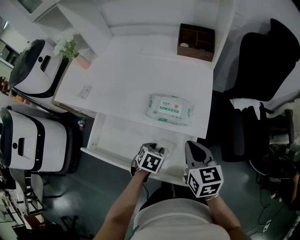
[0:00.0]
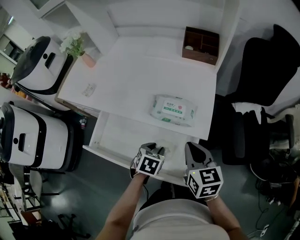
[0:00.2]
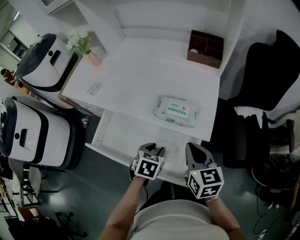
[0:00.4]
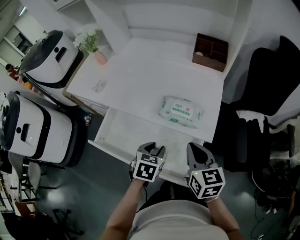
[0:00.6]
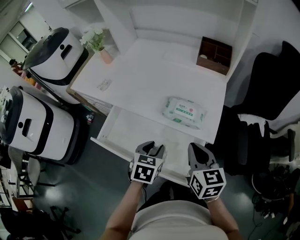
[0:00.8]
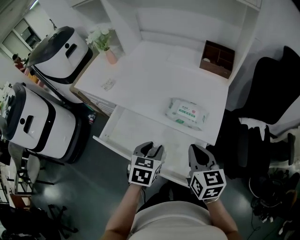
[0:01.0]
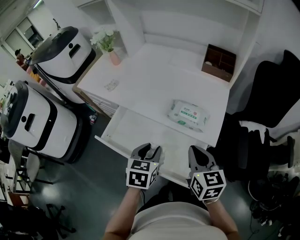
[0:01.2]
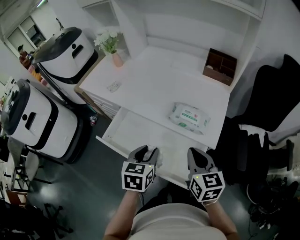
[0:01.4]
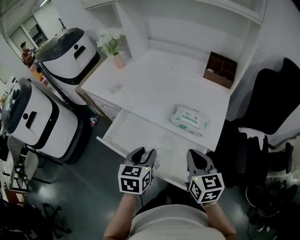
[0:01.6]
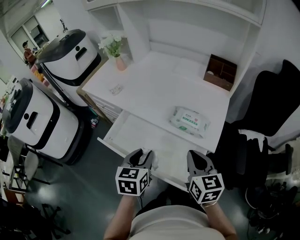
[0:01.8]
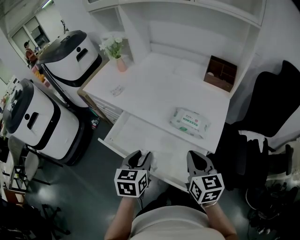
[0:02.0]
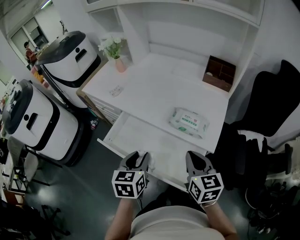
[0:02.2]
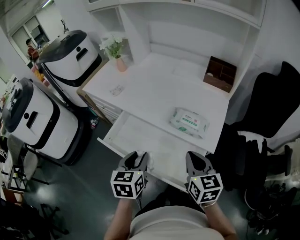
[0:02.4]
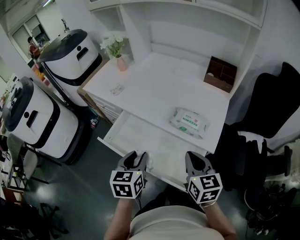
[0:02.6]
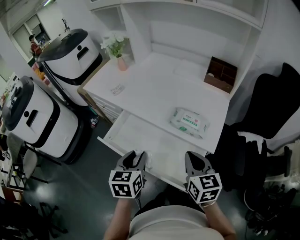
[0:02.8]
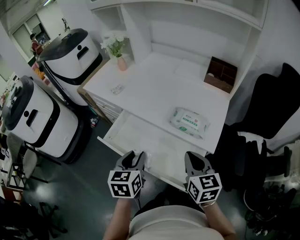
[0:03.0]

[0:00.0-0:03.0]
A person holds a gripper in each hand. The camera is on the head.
0:00.0 to 0:01.6: The right gripper moves to the left, some 5 cm. Meanwhile the left gripper travels upward and to the left by roughly 20 cm, and tips its fingers upward by approximately 30 degrees.
0:01.6 to 0:03.0: The grippers move only a little.

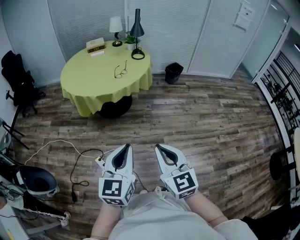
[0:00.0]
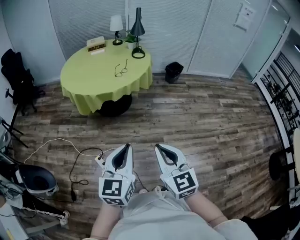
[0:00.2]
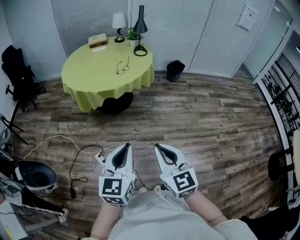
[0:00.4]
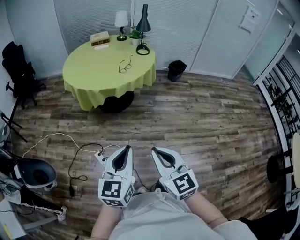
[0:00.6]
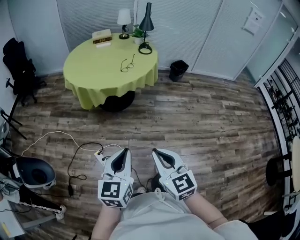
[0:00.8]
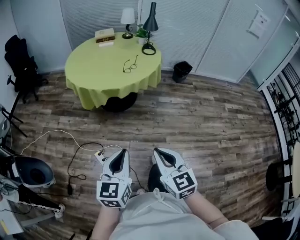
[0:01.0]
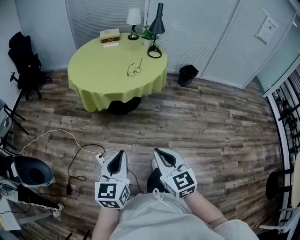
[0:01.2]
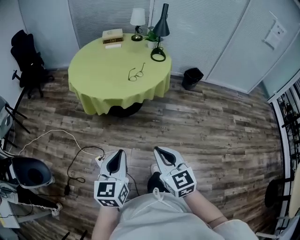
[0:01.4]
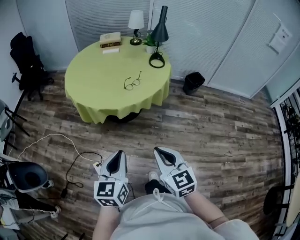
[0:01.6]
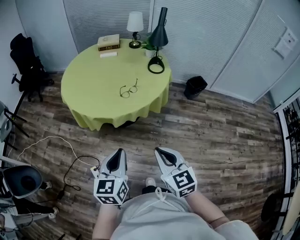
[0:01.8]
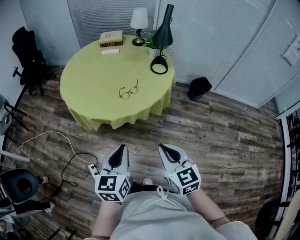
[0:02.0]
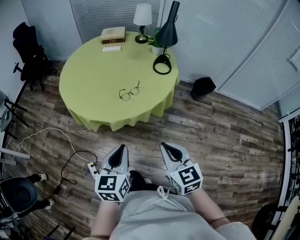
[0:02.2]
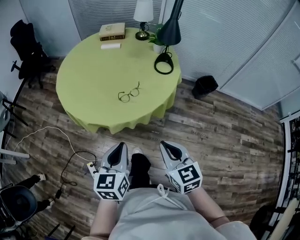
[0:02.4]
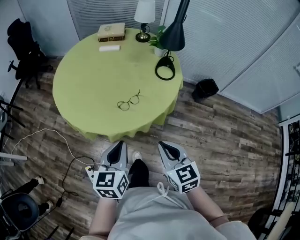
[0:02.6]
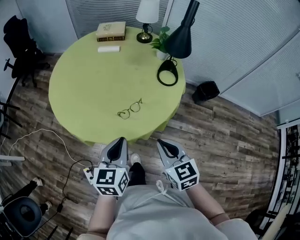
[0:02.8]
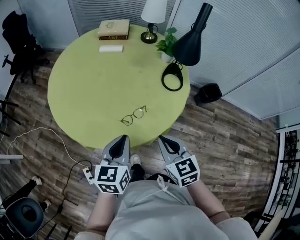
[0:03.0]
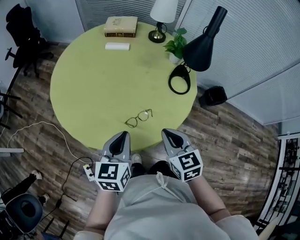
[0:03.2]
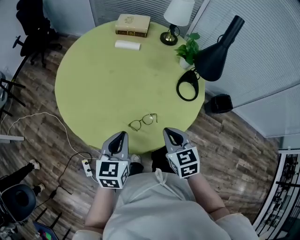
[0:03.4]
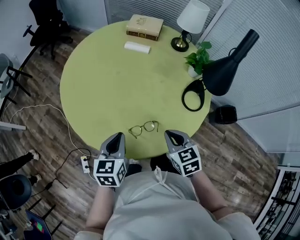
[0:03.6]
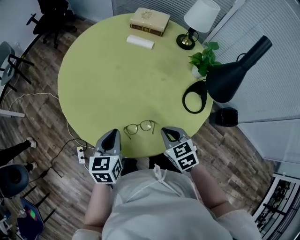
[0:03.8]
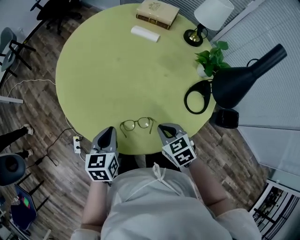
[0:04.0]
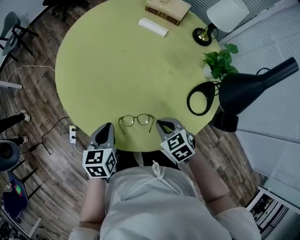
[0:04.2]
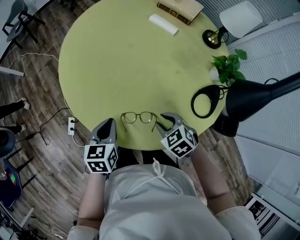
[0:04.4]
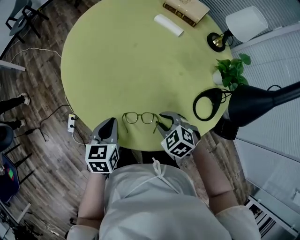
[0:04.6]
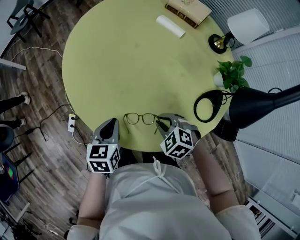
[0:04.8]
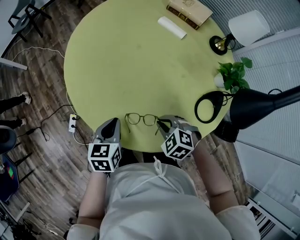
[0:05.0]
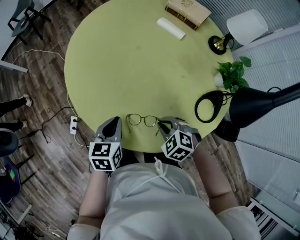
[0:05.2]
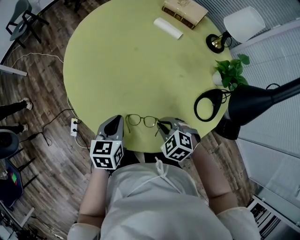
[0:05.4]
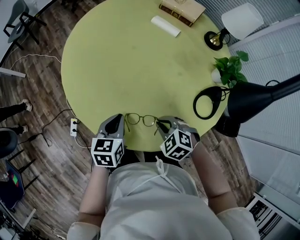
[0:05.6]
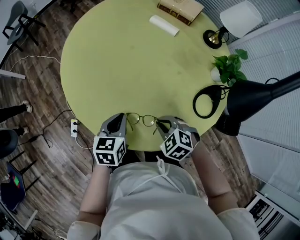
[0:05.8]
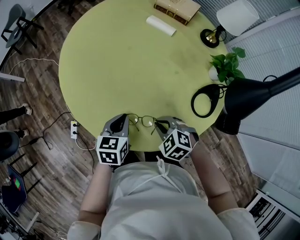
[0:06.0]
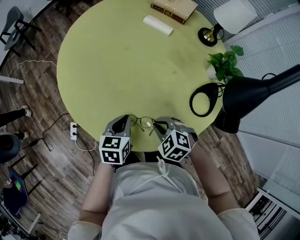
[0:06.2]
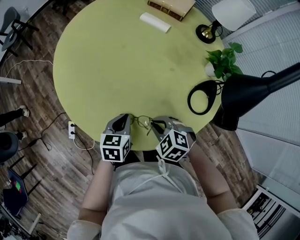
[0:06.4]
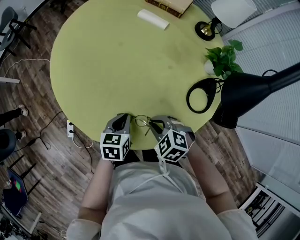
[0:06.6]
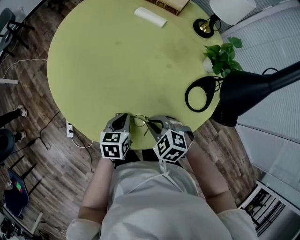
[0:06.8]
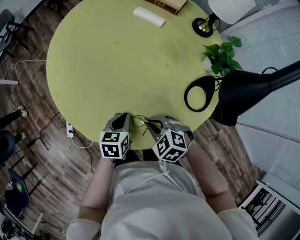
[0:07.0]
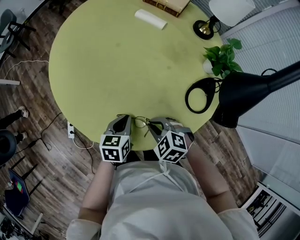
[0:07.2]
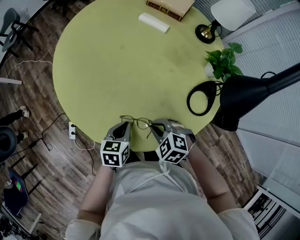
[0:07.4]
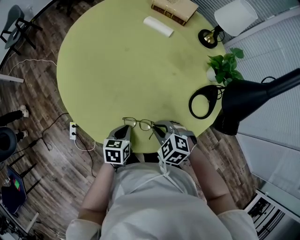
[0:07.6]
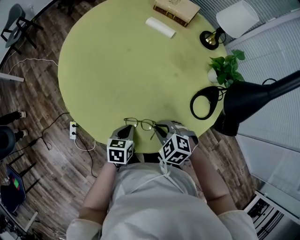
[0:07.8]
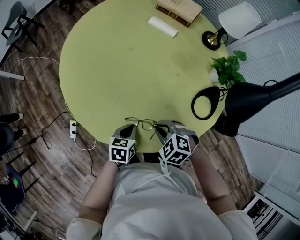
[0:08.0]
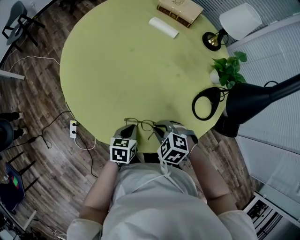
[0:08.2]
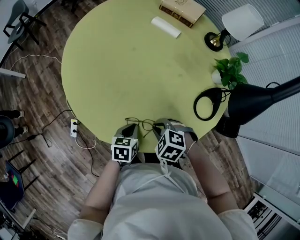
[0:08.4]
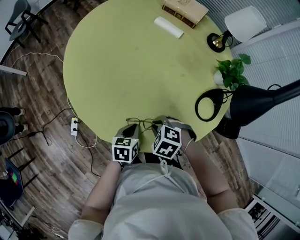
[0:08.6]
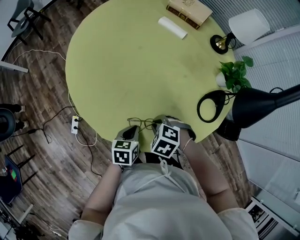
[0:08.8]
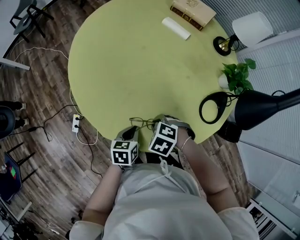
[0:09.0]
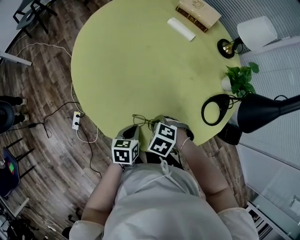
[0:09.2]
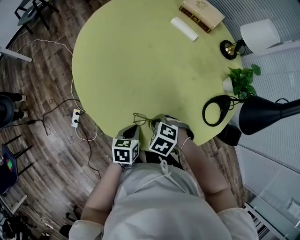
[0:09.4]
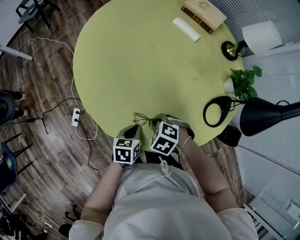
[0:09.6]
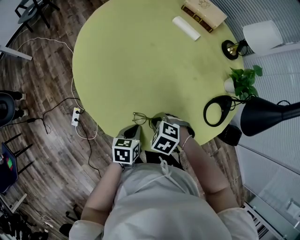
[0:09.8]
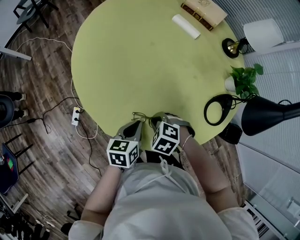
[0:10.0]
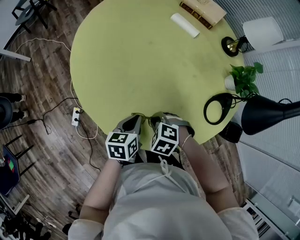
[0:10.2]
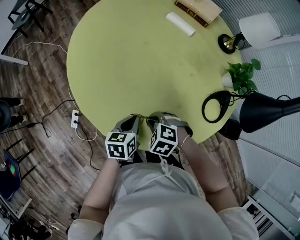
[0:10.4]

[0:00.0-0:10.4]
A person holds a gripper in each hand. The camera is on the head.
0:00.0 to 0:01.4: Both grippers move forward, about 15 cm.
0:01.4 to 0:03.0: Both grippers are carried forward, about 50 cm.
0:03.0 to 0:04.4: Both grippers travel together downward, roughly 15 cm. The left gripper turns by some 40 degrees; the right gripper rotates some 60 degrees, and opens its fingers.
0:04.4 to 0:06.0: The right gripper closes its fingers. Meanwhile the left gripper goes approximately 5 cm to the right.
0:06.0 to 0:07.4: The left gripper ends up some 5 cm from where it was.
0:07.4 to 0:09.0: The right gripper moves roughly 5 cm.

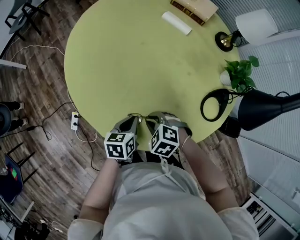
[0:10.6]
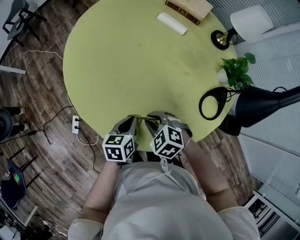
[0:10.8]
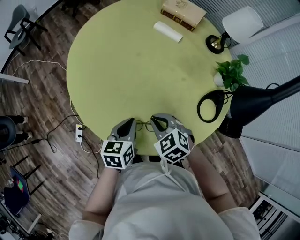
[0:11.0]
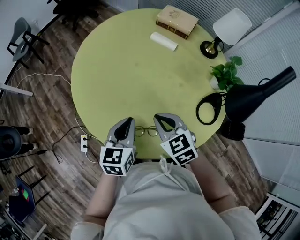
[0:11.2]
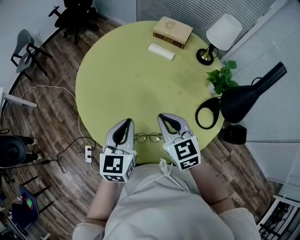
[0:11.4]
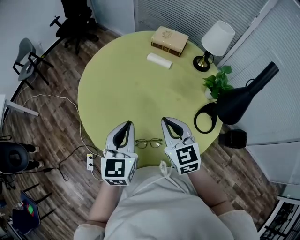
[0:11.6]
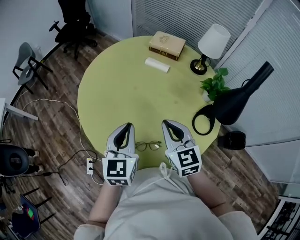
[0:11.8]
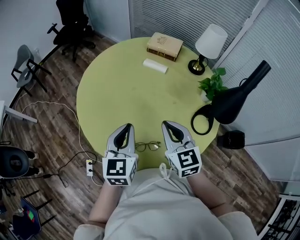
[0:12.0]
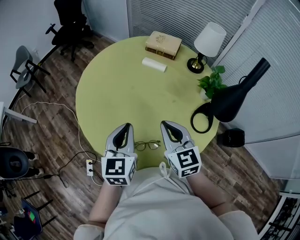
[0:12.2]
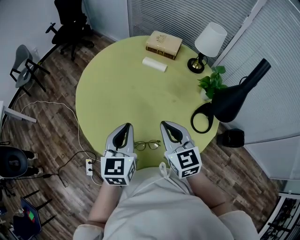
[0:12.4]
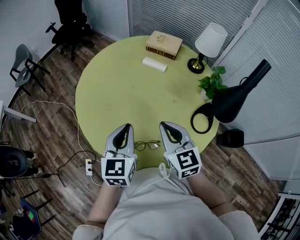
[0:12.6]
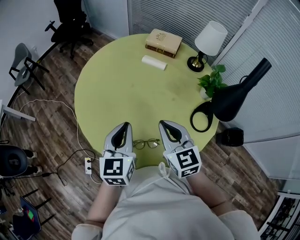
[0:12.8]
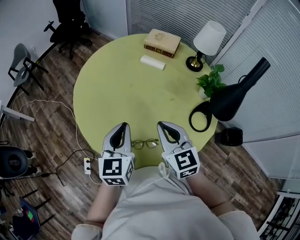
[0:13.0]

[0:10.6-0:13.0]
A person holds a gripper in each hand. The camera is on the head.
0:10.6 to 0:11.8: Both grippers move upward, some 25 cm. The left gripper turns by some 40 degrees. The right gripper points its fingers about 50 degrees further upward.
0:11.8 to 0:13.0: The grippers make only small movements.

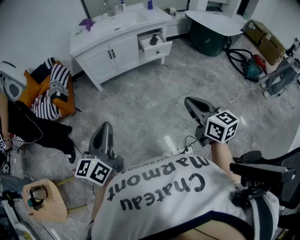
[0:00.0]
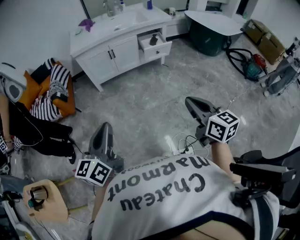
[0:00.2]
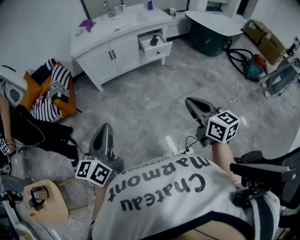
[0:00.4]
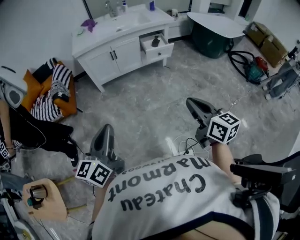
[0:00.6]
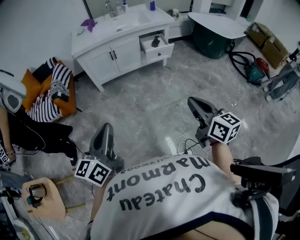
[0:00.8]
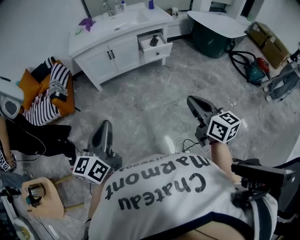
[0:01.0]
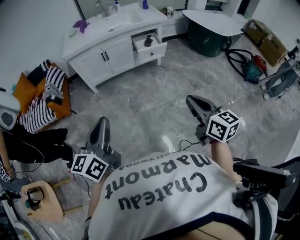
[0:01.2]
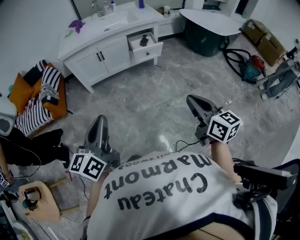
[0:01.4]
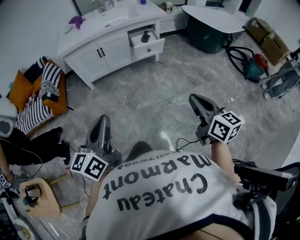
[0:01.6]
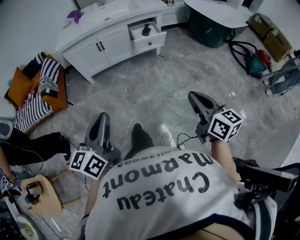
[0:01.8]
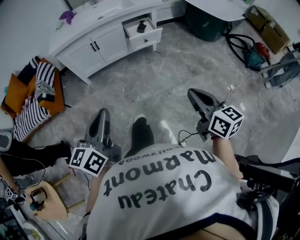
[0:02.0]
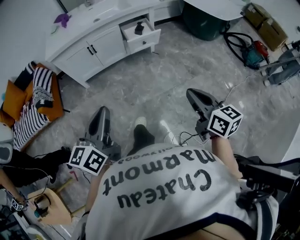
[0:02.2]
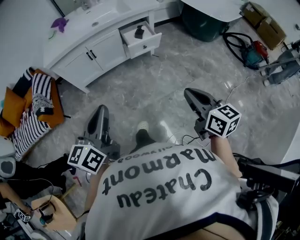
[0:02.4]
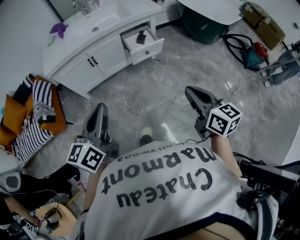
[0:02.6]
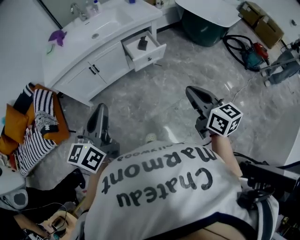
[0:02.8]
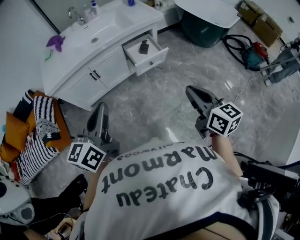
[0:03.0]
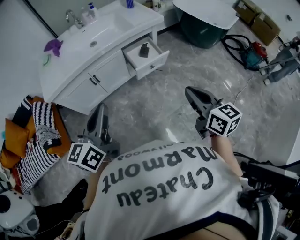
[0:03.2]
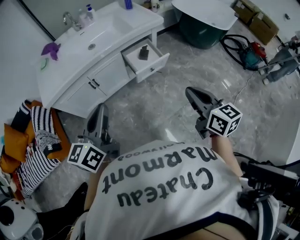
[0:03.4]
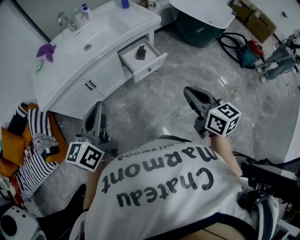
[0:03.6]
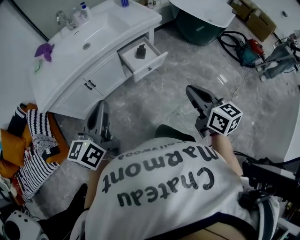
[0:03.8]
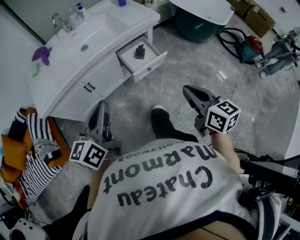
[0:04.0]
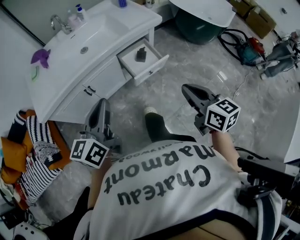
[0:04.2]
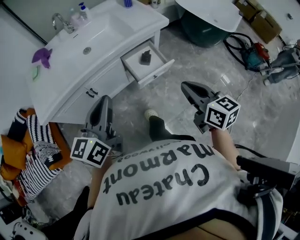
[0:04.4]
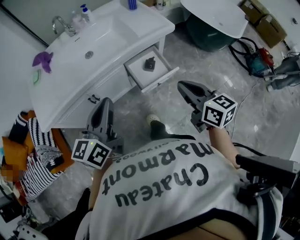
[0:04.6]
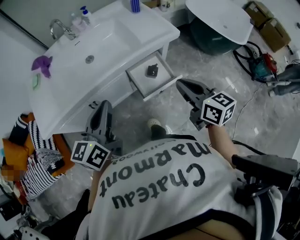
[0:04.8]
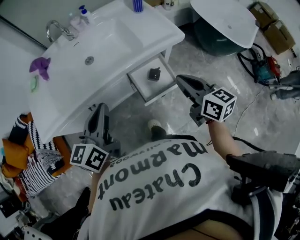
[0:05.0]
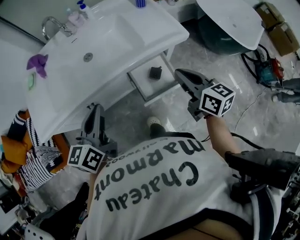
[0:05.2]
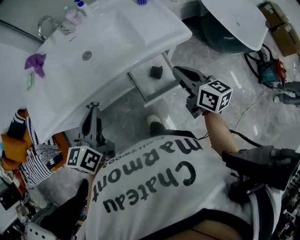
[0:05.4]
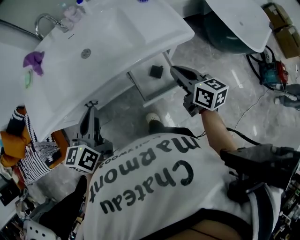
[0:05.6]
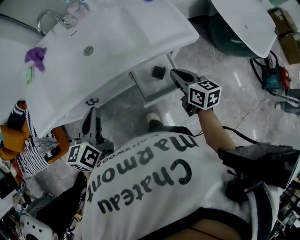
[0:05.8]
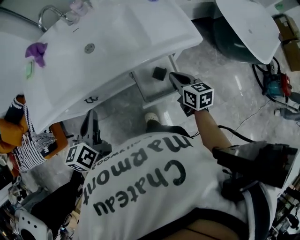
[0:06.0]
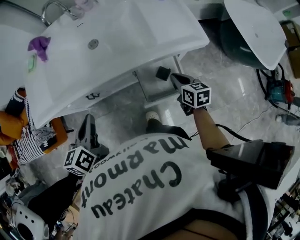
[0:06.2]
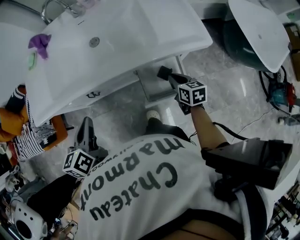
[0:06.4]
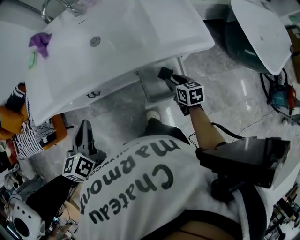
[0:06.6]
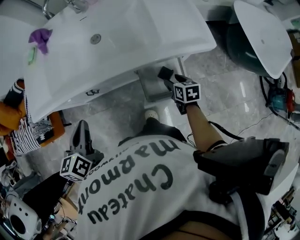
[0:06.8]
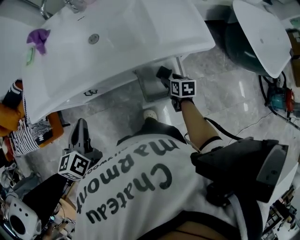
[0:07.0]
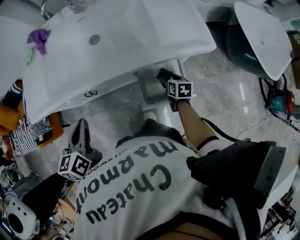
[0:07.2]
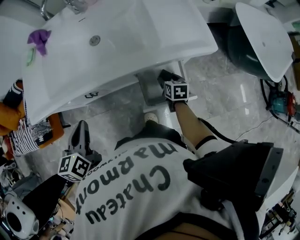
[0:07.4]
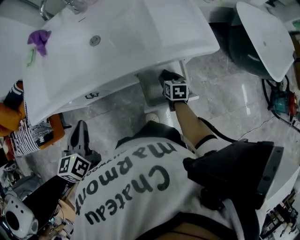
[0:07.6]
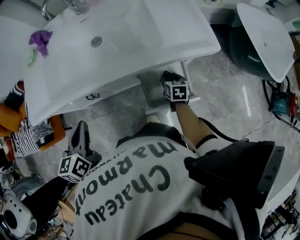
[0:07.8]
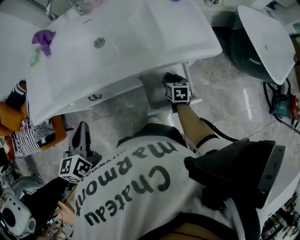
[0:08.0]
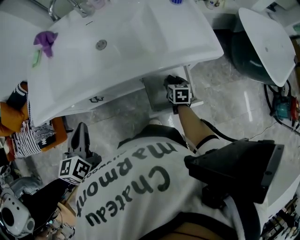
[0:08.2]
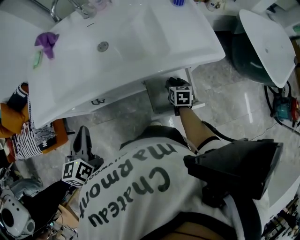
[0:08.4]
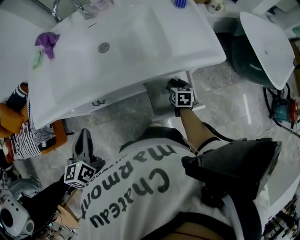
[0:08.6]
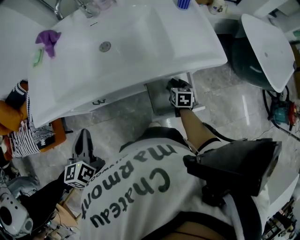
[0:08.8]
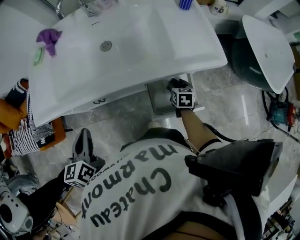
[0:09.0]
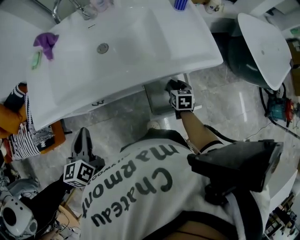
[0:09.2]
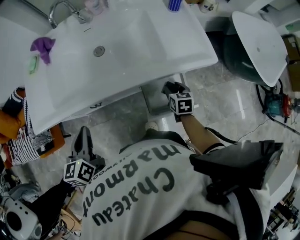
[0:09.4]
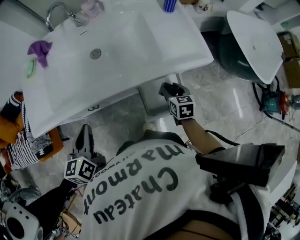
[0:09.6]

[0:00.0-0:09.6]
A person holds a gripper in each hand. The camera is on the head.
0:00.0 to 0:01.6: The two grippers go roughly 15 cm to the right and forward.
0:01.6 to 0:03.2: The grippers both shift forward by approximately 35 cm.
0:03.2 to 0:04.8: Both grippers travel together forward, some 30 cm.
0:04.8 to 0:06.4: The right gripper travels downward and forward by approximately 30 cm, and rotates approximately 30 degrees. The left gripper heads downward, to the left and forward, covering some 15 cm, and turns by roughly 40 degrees.
0:06.4 to 0:08.0: The right gripper shifts approximately 10 cm downward and forward, and opens.
0:08.0 to 0:09.6: The right gripper shifts roughly 10 cm upward.
